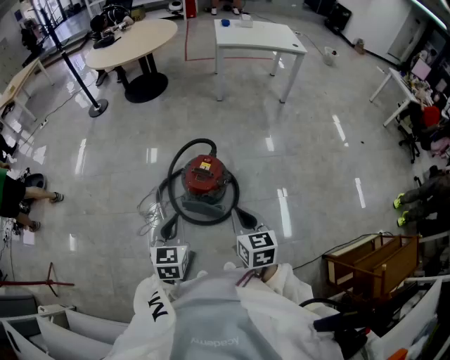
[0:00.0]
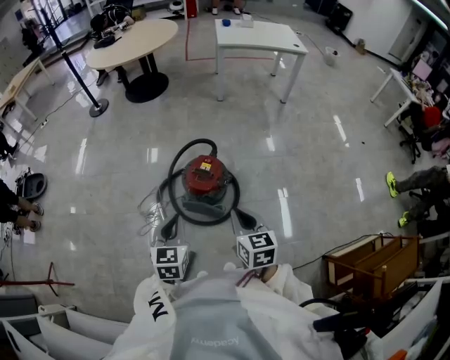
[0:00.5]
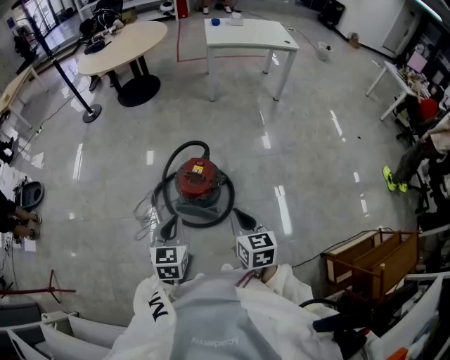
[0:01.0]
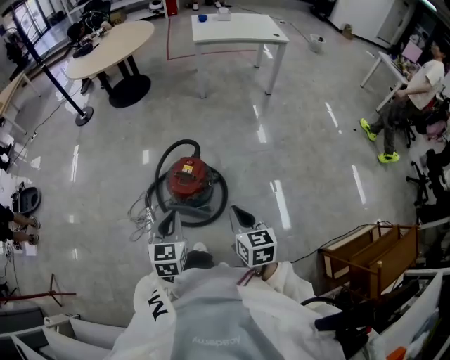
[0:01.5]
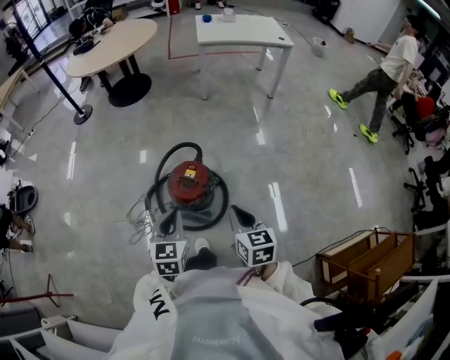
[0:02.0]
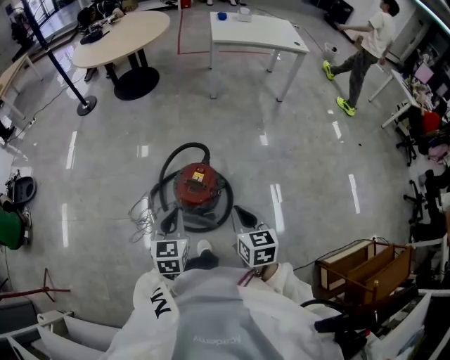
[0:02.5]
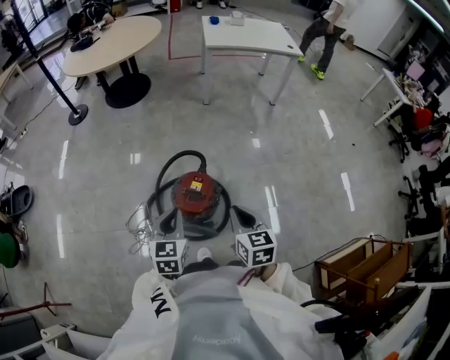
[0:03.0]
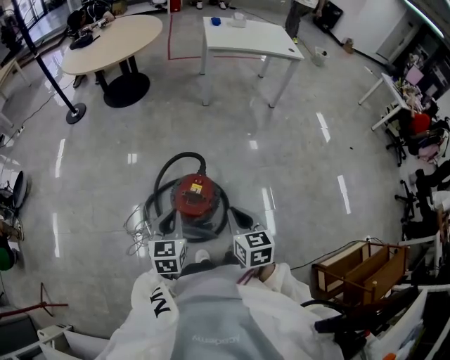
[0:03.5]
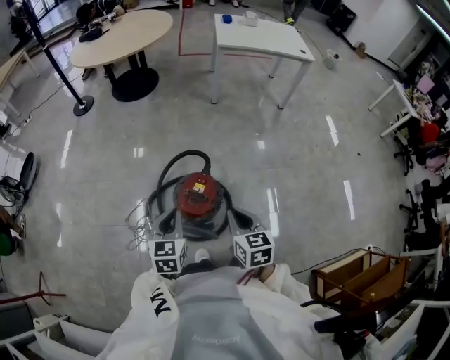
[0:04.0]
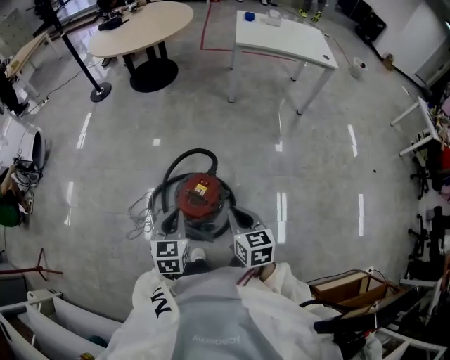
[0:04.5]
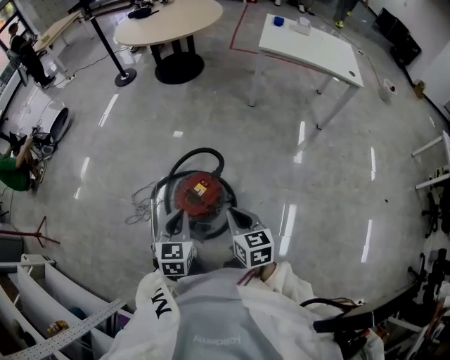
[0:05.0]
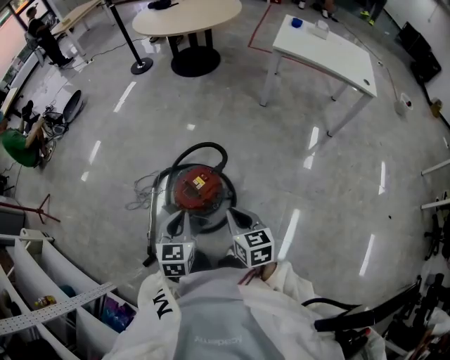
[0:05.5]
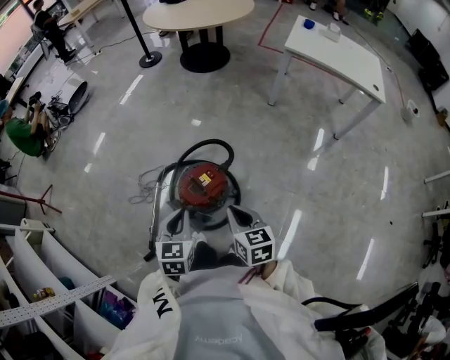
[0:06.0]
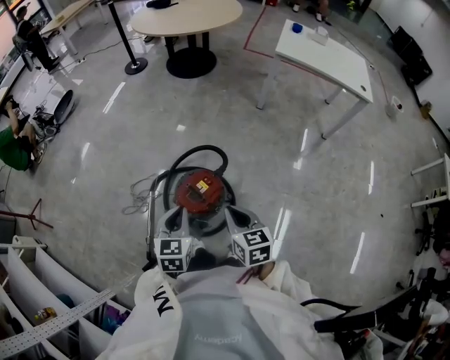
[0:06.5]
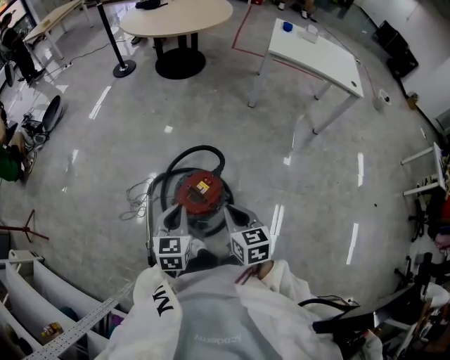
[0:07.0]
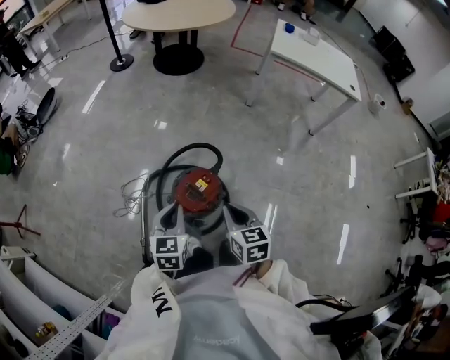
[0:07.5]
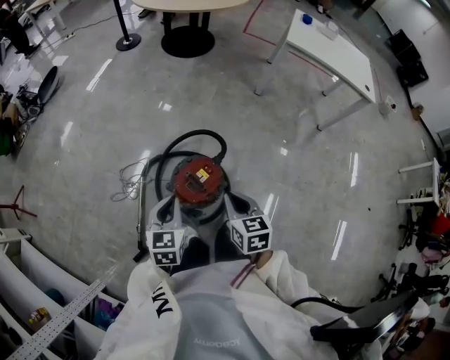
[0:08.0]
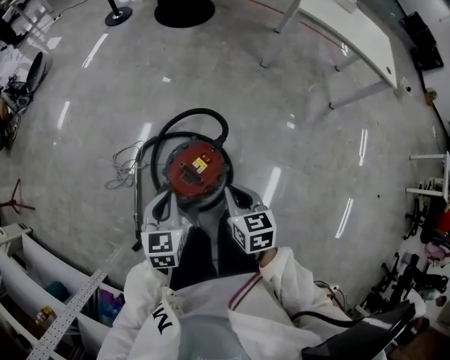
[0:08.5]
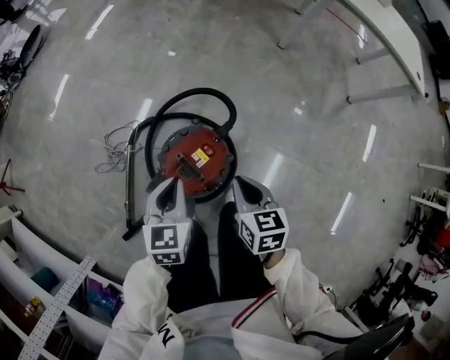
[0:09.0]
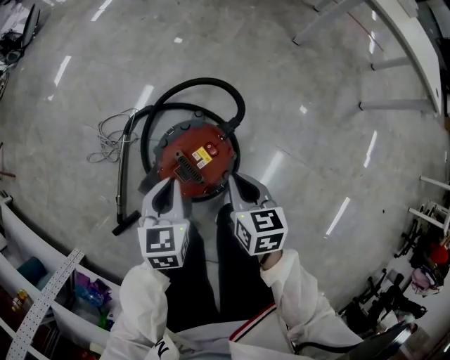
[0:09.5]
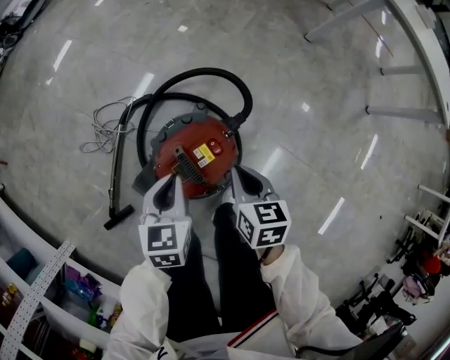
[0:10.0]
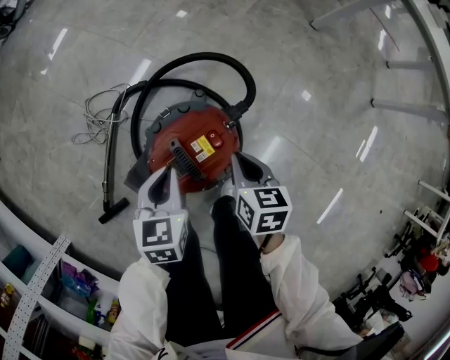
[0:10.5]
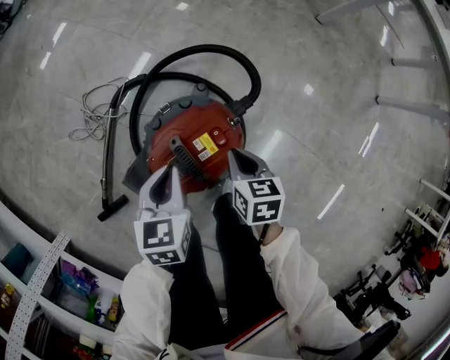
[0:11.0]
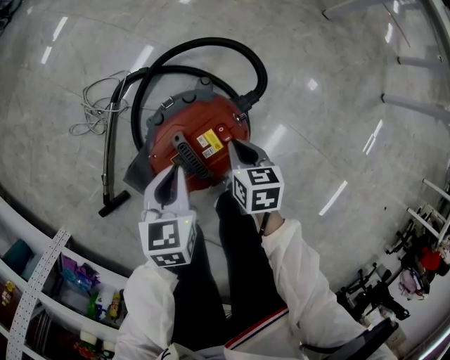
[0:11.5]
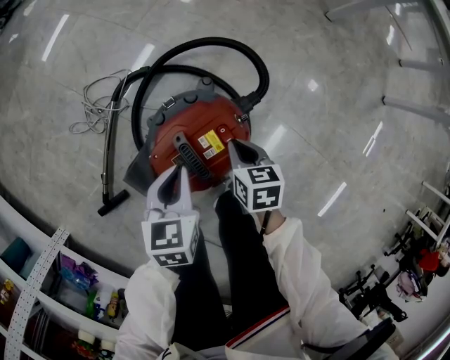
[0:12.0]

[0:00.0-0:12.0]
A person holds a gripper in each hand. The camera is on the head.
0:00.0 to 0:02.0: The right gripper heads to the right, covering roughly 5 cm. The left gripper is displaced forward and to the right by approximately 10 cm.
0:02.0 to 0:04.0: Both grippers move forward and to the left, about 10 cm.
0:04.0 to 0:06.0: The right gripper ends up approximately 10 cm from where it was, and swivels about 30 degrees. The left gripper shifts by roughly 10 cm, and changes its angle by roughly 30 degrees.
0:06.0 to 0:08.0: The left gripper travels to the left and forward by approximately 10 cm. The right gripper heads forward and to the left, covering about 10 cm.
0:08.0 to 0:10.0: Both grippers move downward, some 25 cm.
0:10.0 to 0:12.0: The left gripper goes some 5 cm downward, while the right gripper goes about 15 cm downward.

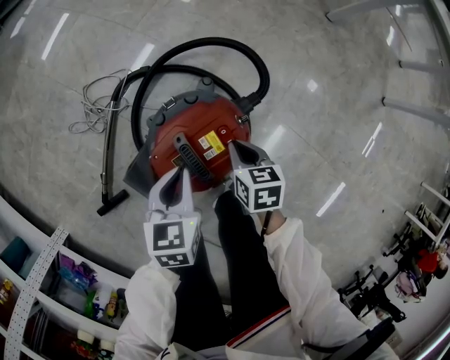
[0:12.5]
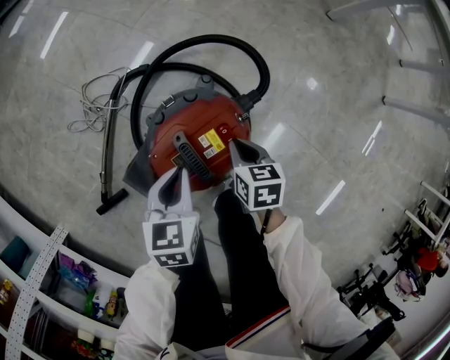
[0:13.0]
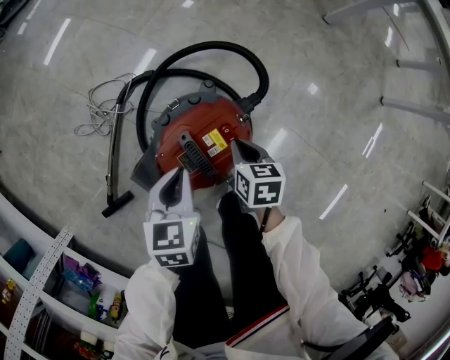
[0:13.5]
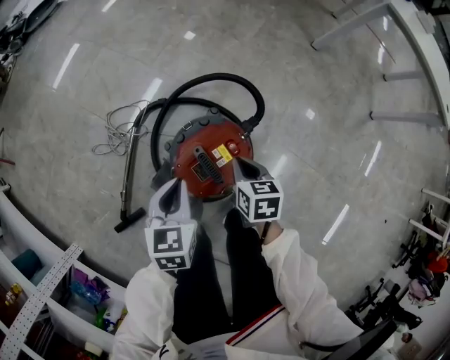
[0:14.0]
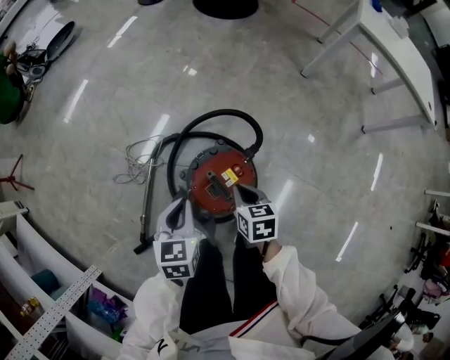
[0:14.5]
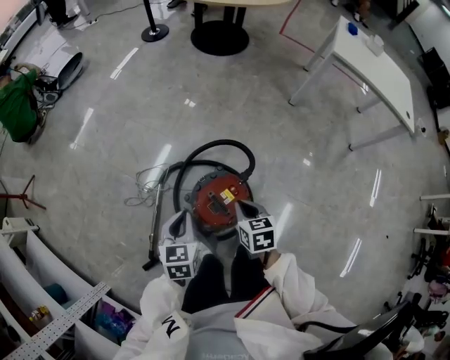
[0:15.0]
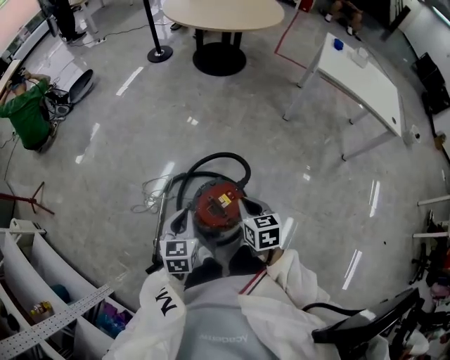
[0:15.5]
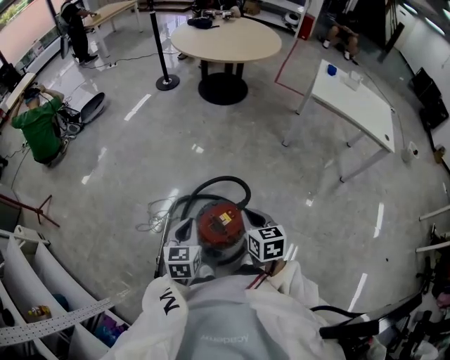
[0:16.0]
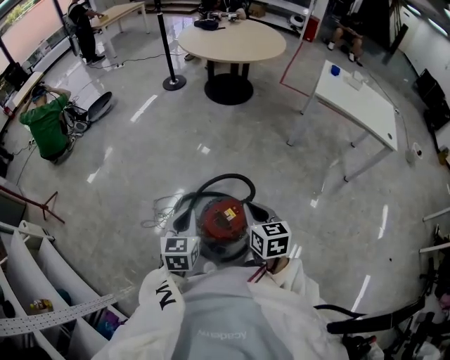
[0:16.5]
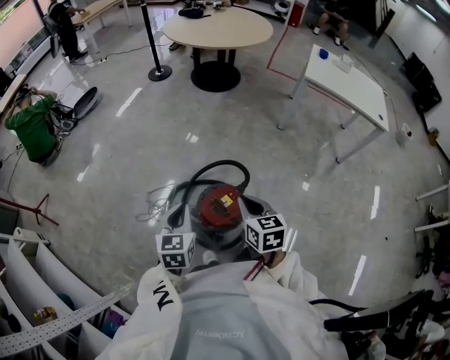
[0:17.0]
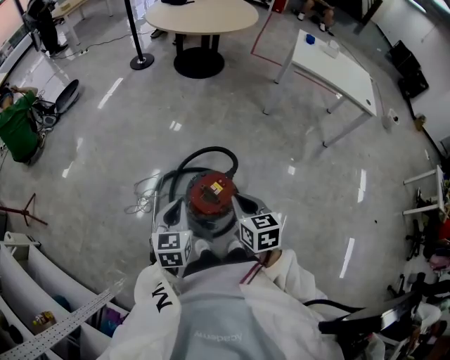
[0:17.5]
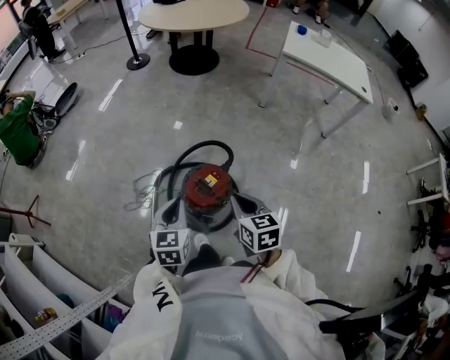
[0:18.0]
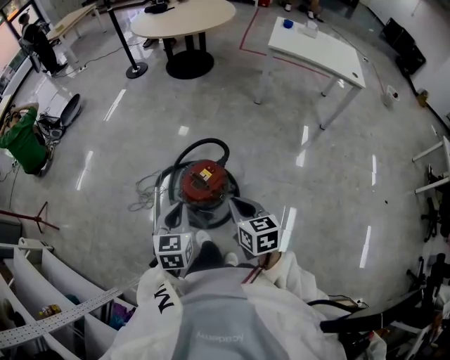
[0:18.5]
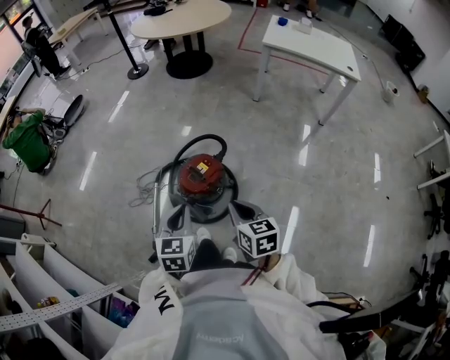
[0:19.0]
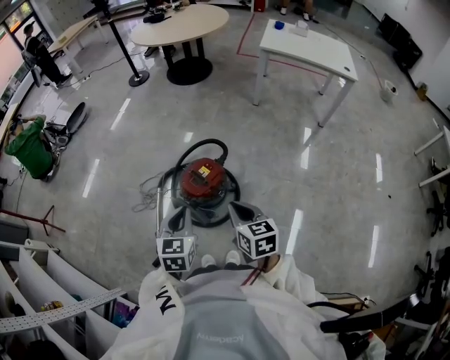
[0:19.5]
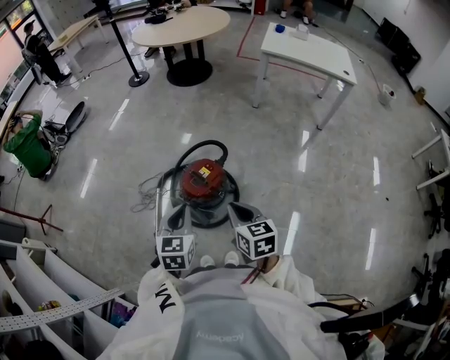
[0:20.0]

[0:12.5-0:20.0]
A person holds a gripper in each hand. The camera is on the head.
0:12.5 to 0:14.5: The right gripper travels upward by roughly 15 cm. Meanwhile the left gripper travels upward and to the left by about 15 cm.
0:14.5 to 0:16.5: The two grippers go roughly 25 cm upward. The right gripper changes its angle by roughly 20 degrees.
0:16.5 to 0:18.0: Both grippers travel together backward, about 10 cm.
0:18.0 to 0:20.0: The left gripper moves backward and to the right, about 15 cm. Meanwhile the right gripper goes some 15 cm backward.

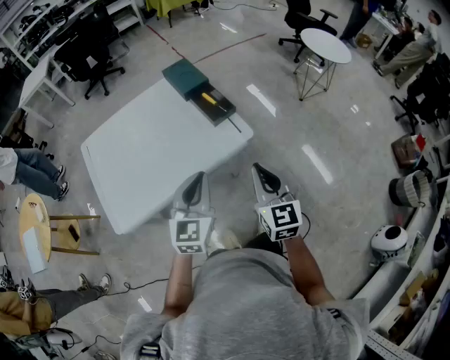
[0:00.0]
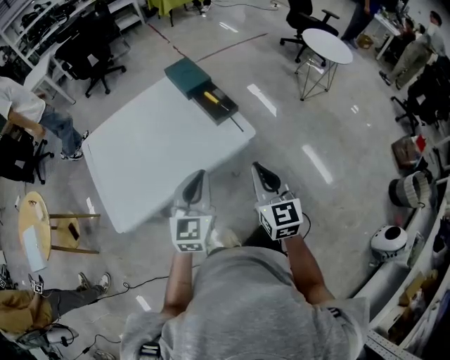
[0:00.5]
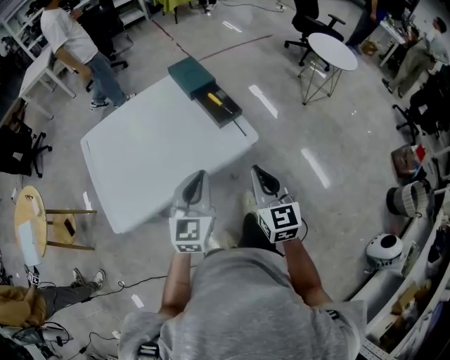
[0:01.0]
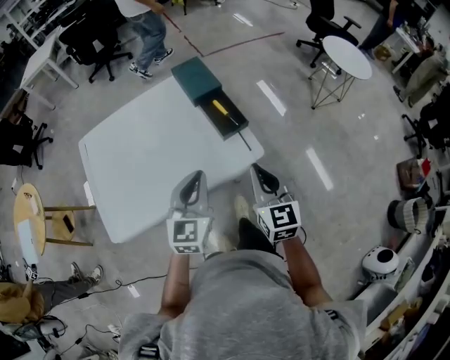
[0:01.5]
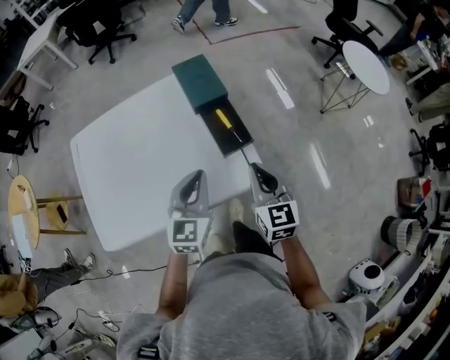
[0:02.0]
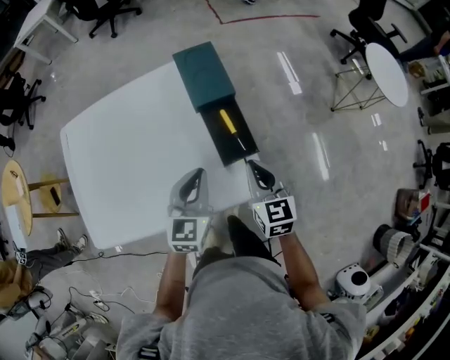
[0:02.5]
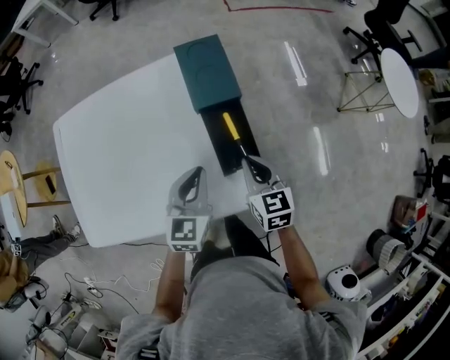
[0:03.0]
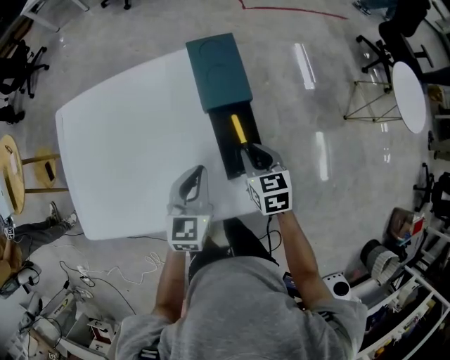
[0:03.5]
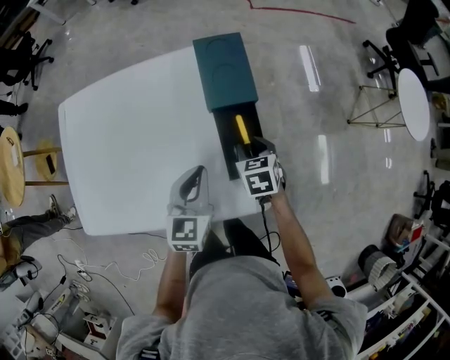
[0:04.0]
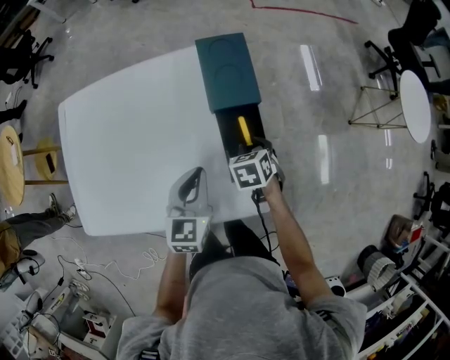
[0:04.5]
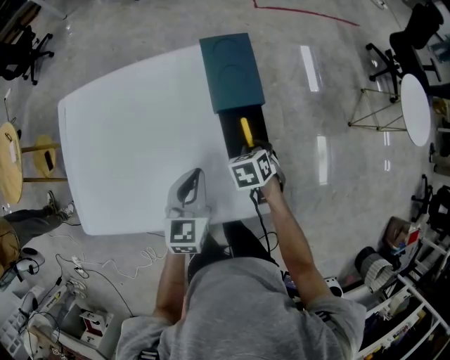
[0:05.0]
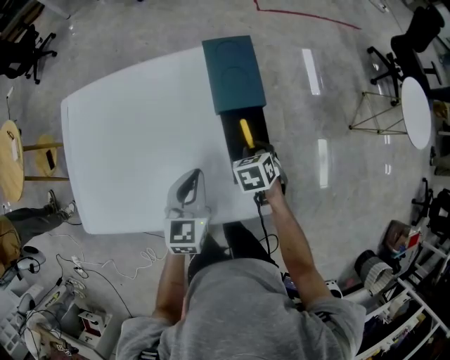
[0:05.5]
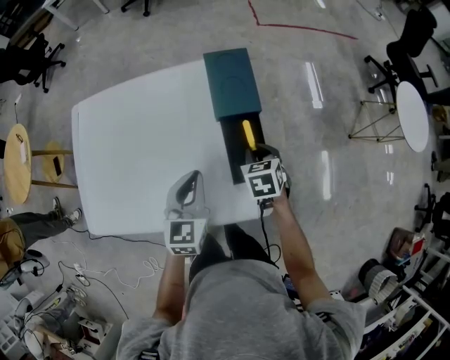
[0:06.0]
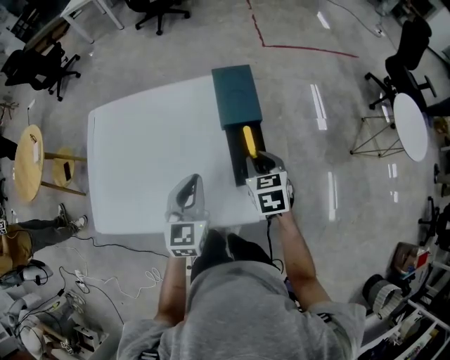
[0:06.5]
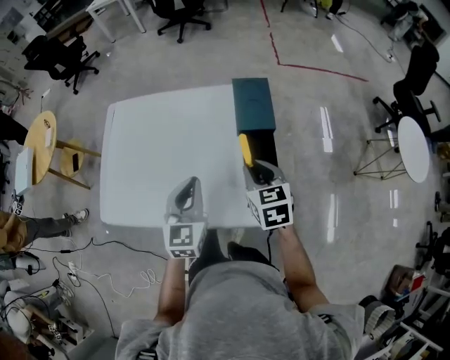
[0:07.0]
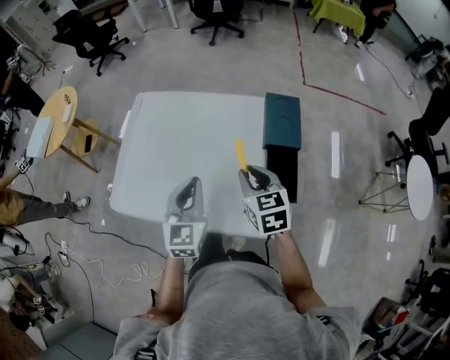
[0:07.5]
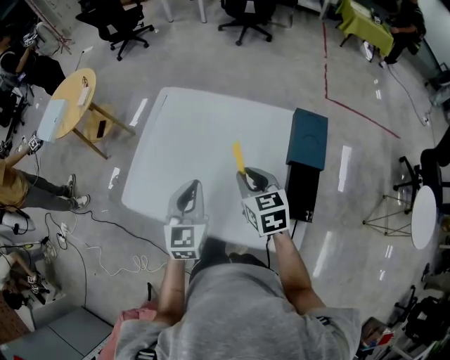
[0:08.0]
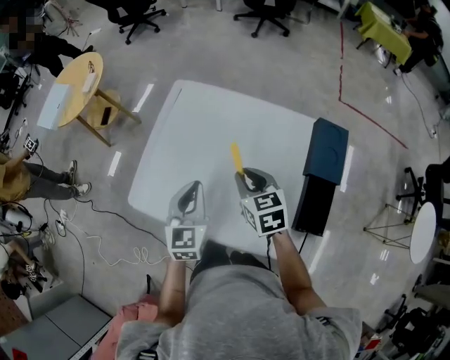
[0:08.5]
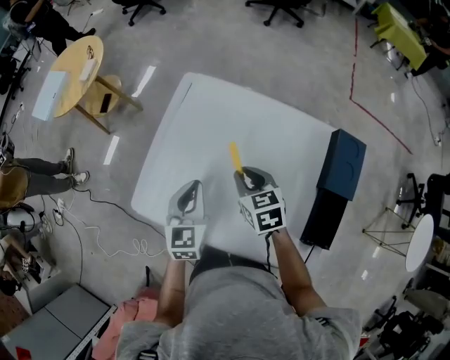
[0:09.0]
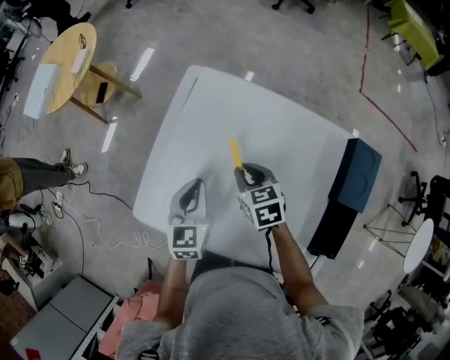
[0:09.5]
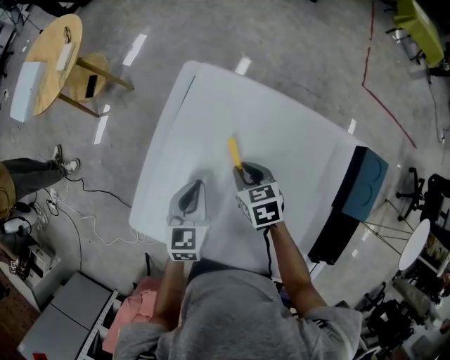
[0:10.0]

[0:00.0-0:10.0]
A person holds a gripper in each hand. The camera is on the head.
0:00.0 to 0:02.0: The grippers both shift forward by about 25 cm.
0:02.0 to 0:04.0: The left gripper heads forward and downward, covering approximately 15 cm; the right gripper goes roughly 30 cm downward and forward, tilts its fingers some 40 degrees downward, and opens up.
0:04.0 to 0:06.0: There are only small adjustments of the grippers.
0:06.0 to 0:08.0: The right gripper changes place by approximately 30 cm, and swivels roughly 40 degrees, while the left gripper shifts by approximately 25 cm, and swivels about 30 degrees.
0:08.0 to 0:10.0: Both grippers move forward, downward and to the left, some 30 cm. The right gripper rotates roughly 20 degrees. The left gripper swivels roughly 20 degrees.
